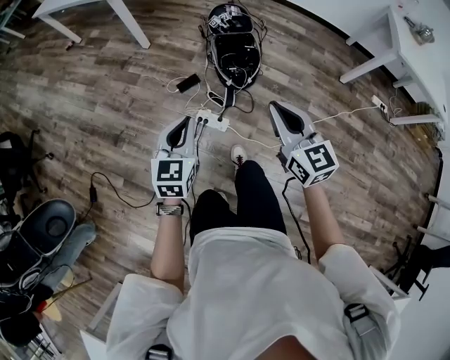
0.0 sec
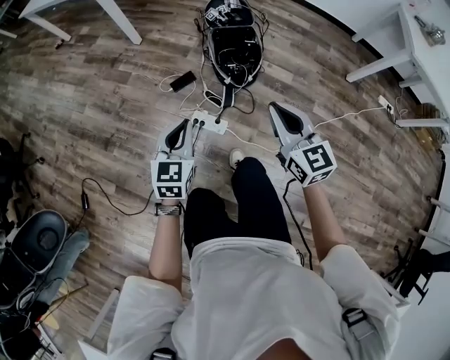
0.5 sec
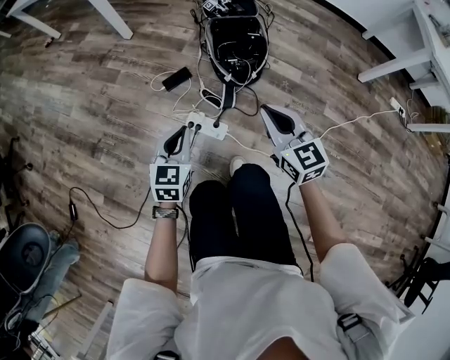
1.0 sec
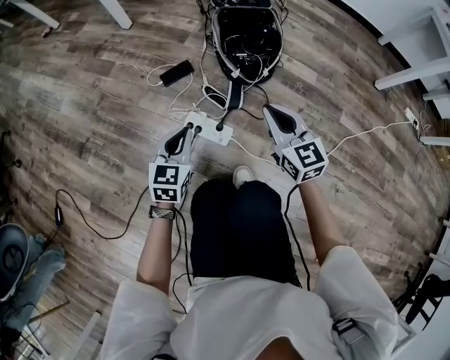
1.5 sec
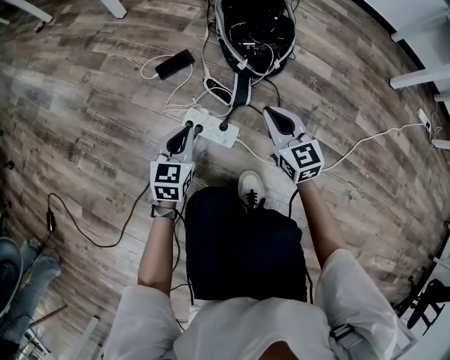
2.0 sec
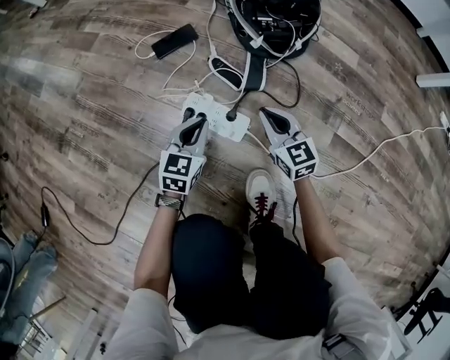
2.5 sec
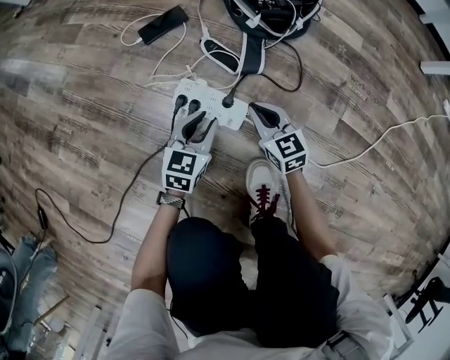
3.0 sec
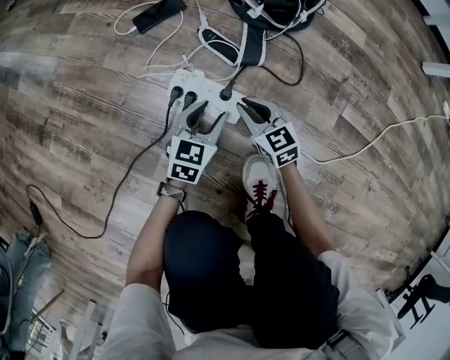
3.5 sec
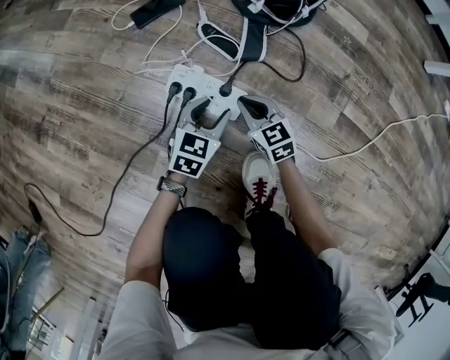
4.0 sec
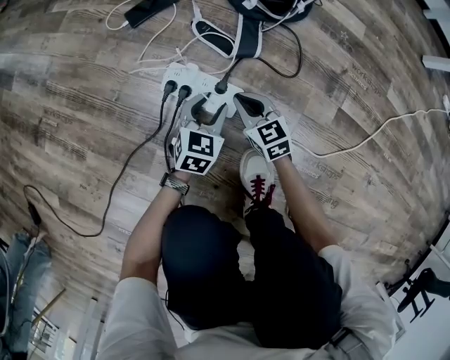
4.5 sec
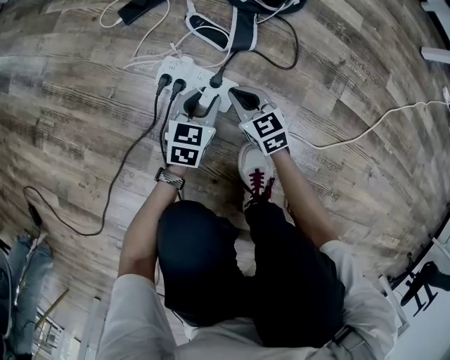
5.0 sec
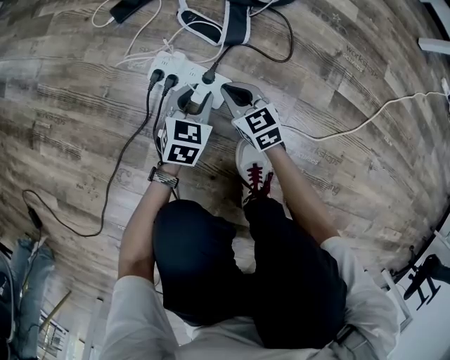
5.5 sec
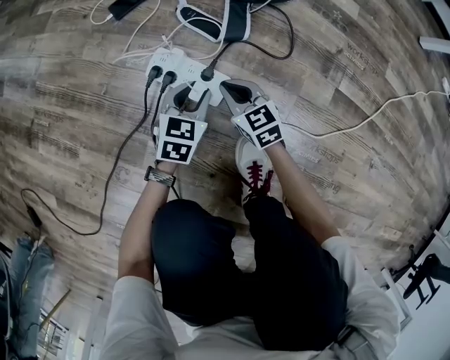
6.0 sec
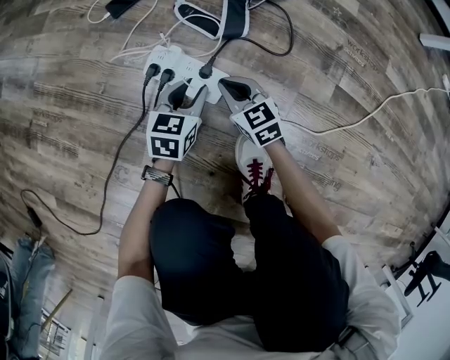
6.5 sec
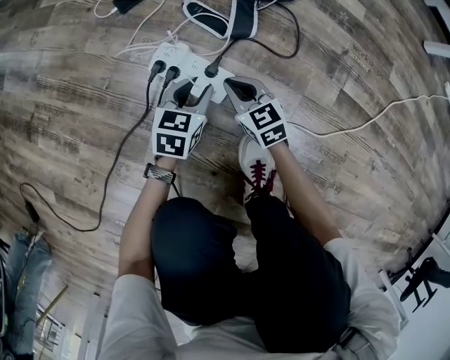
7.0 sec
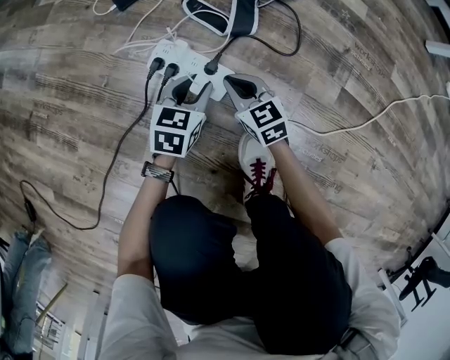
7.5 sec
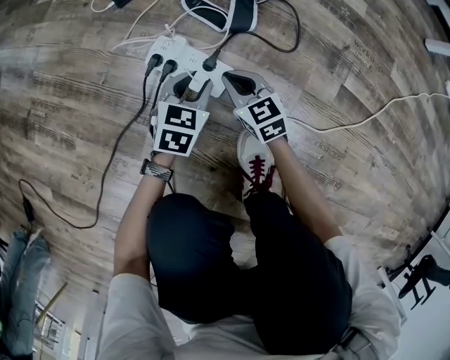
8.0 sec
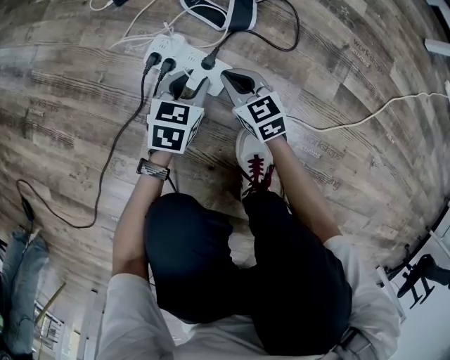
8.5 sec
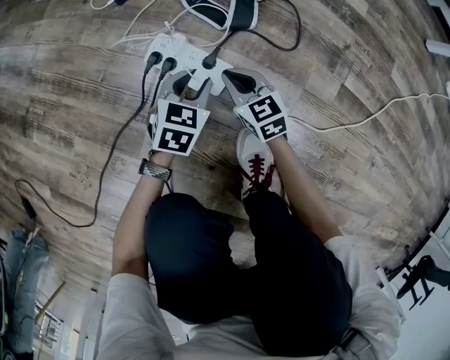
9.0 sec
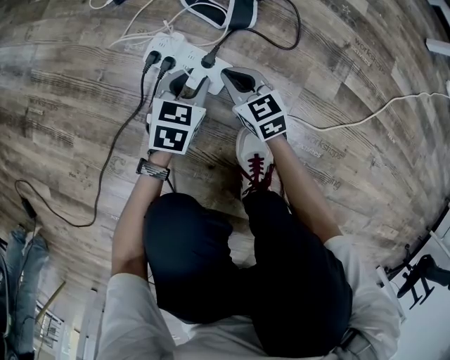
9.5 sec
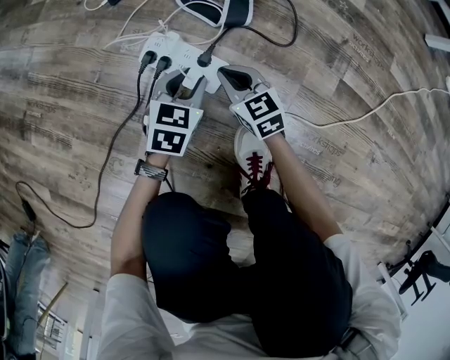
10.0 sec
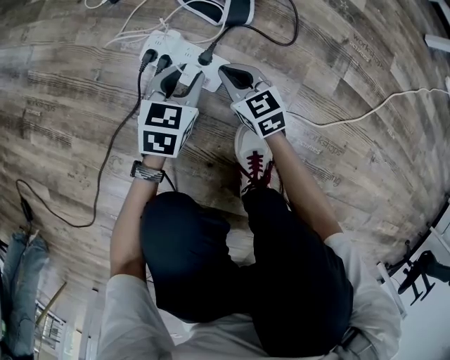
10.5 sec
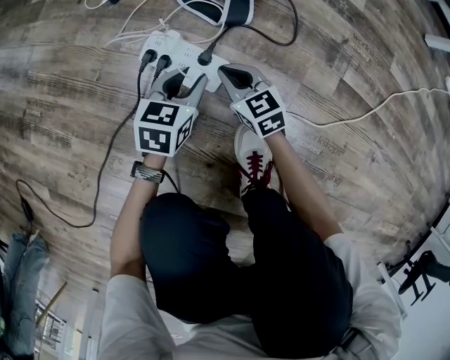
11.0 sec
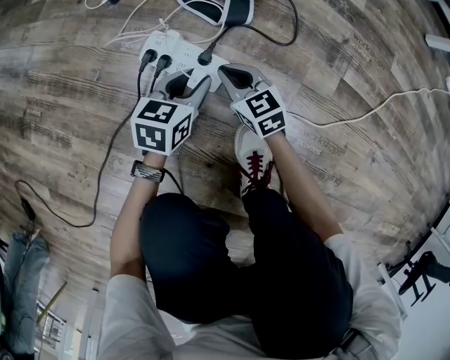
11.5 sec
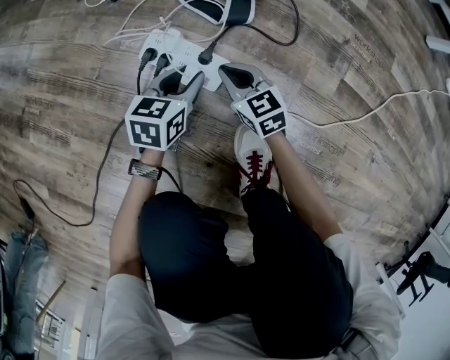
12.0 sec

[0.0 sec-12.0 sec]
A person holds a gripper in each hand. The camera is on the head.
0.0 sec to 2.0 sec: The grippers both shift downward by some 60 cm.
2.0 sec to 4.0 sec: The left gripper heads downward and to the right, covering some 20 cm, and opens. Meanwhile the right gripper goes roughly 30 cm downward.
4.0 sec to 12.0 sec: The grippers move only a little.

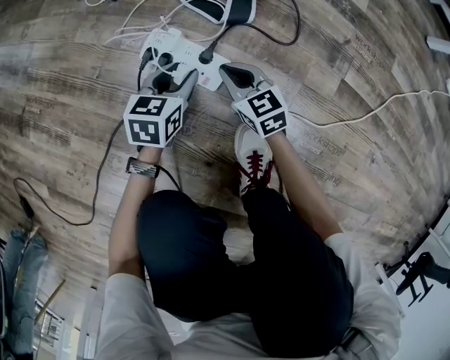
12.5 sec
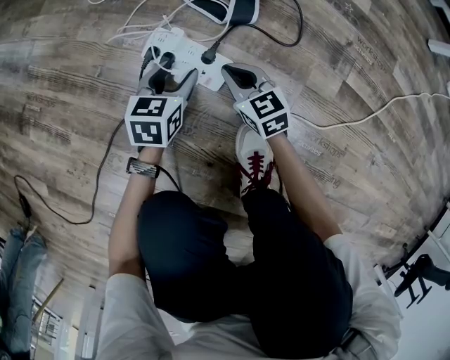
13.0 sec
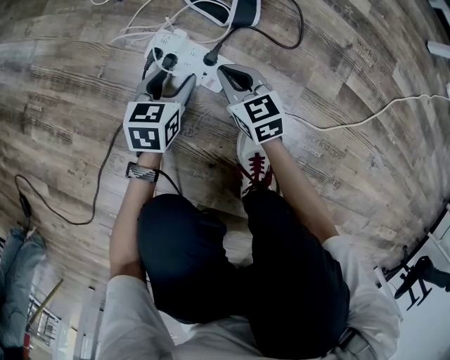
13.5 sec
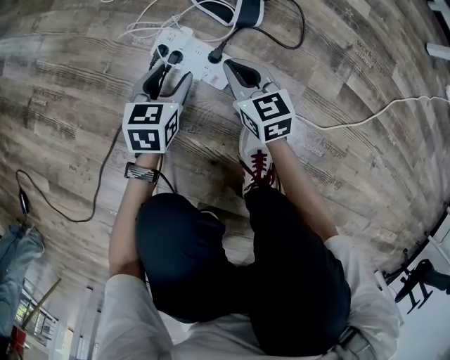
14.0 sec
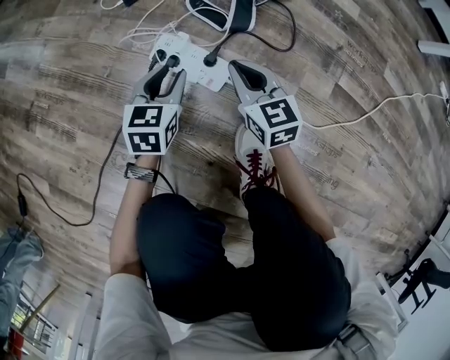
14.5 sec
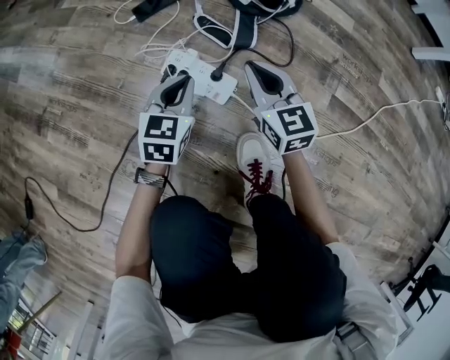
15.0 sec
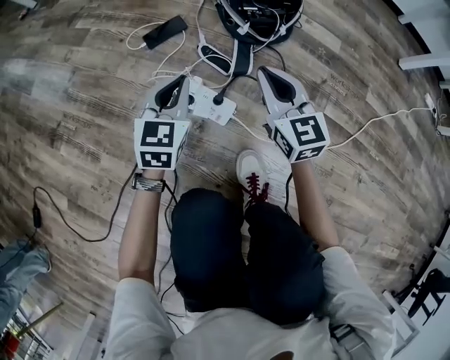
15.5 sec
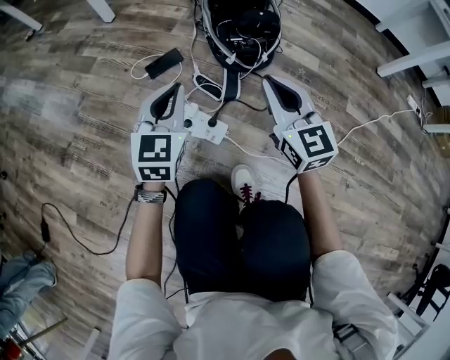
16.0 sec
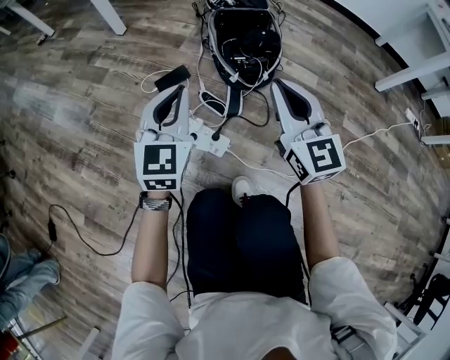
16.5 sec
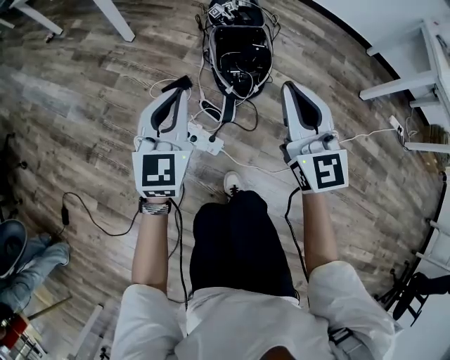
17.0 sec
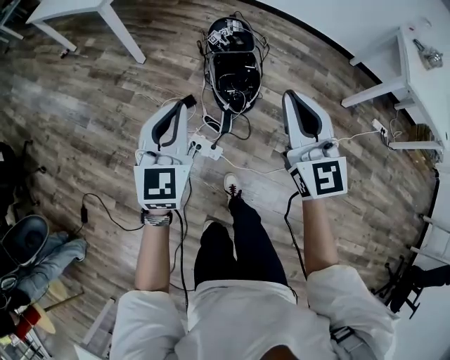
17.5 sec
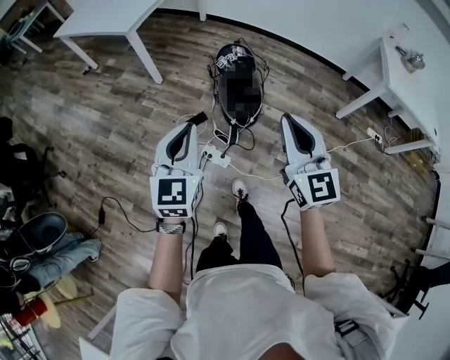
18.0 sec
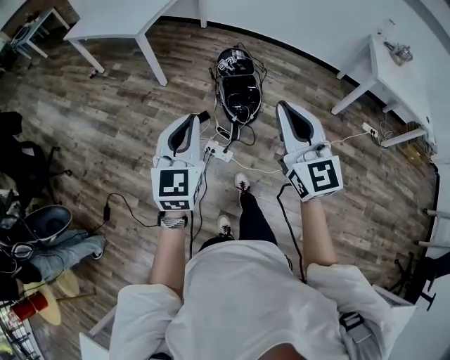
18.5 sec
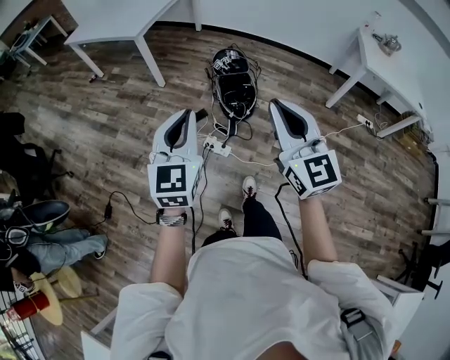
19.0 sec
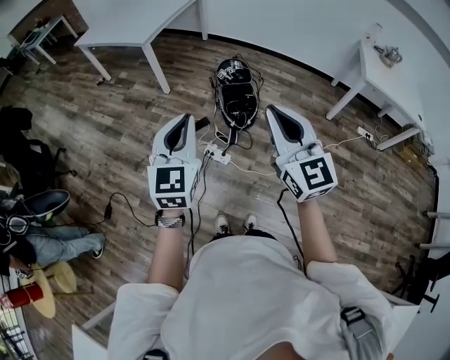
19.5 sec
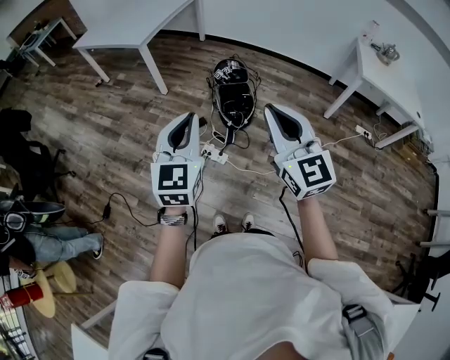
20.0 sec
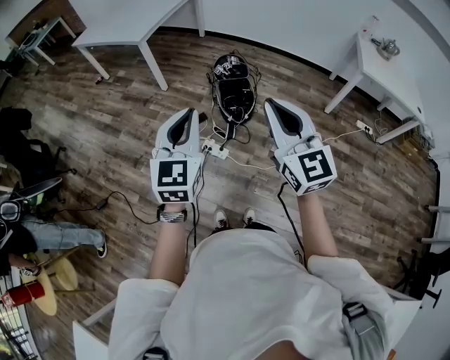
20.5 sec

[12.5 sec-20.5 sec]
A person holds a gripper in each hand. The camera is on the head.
12.5 sec to 14.5 sec: The left gripper moves upward, roughly 5 cm; the right gripper moves upward, about 10 cm.
14.5 sec to 16.5 sec: The two grippers go approximately 40 cm upward. The left gripper changes its angle by approximately 30 degrees, and closes up. The right gripper turns by approximately 30 degrees.
16.5 sec to 18.5 sec: The two grippers go about 60 cm upward.
18.5 sec to 20.5 sec: The left gripper heads backward and upward, covering about 10 cm, while the right gripper goes about 10 cm backward.

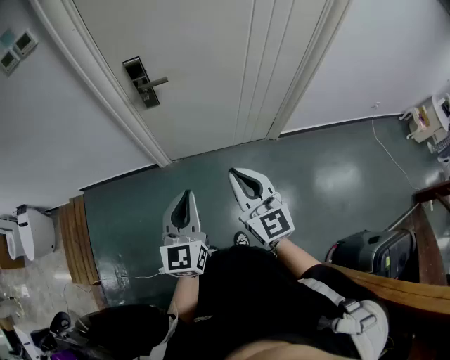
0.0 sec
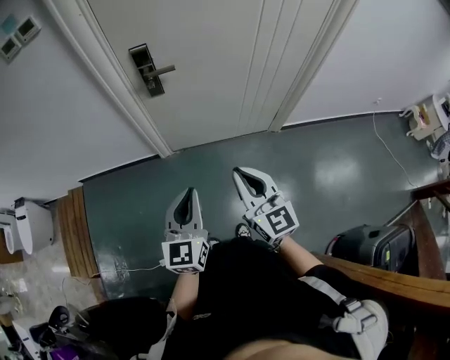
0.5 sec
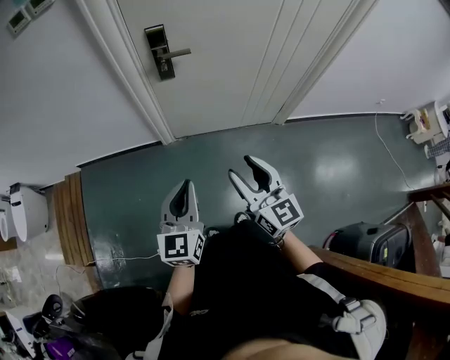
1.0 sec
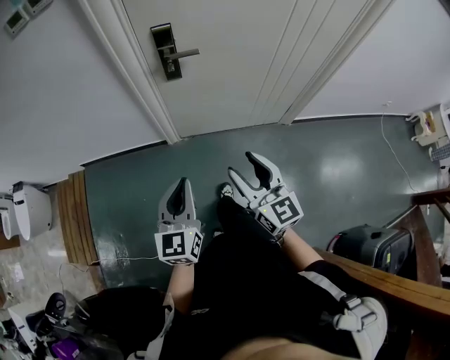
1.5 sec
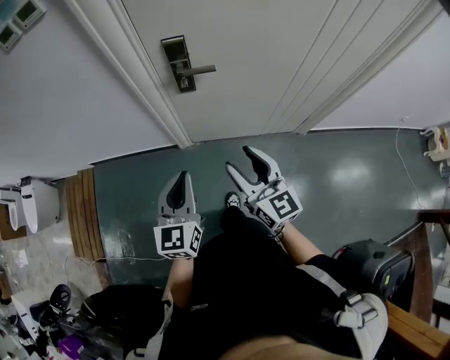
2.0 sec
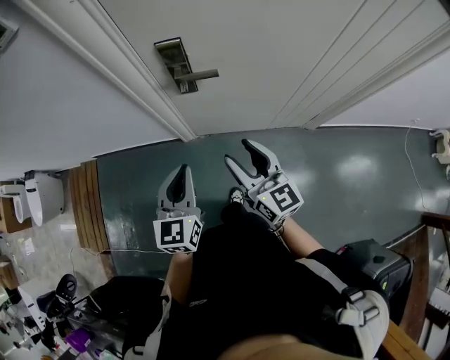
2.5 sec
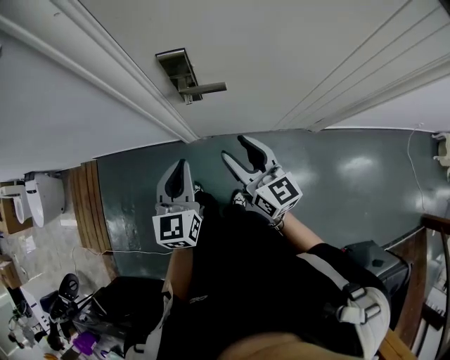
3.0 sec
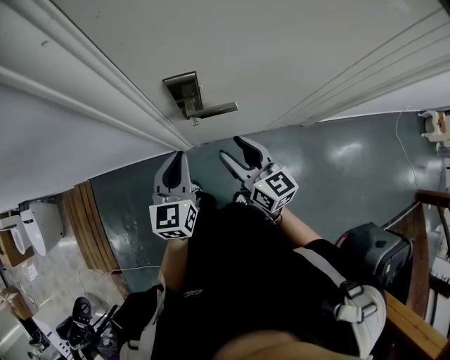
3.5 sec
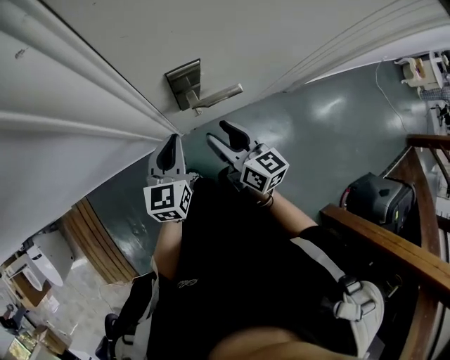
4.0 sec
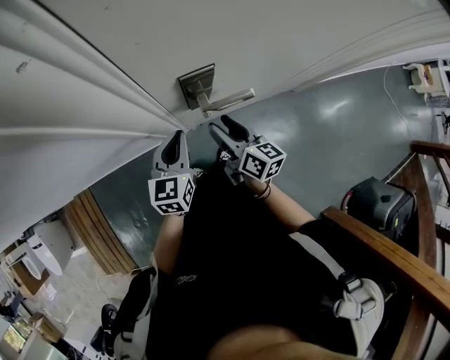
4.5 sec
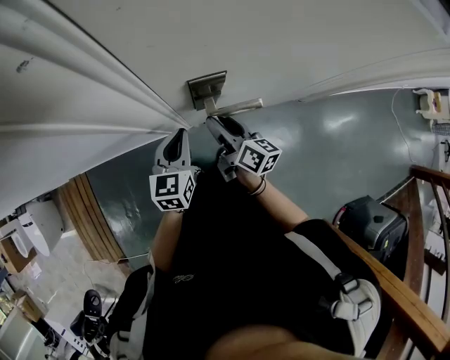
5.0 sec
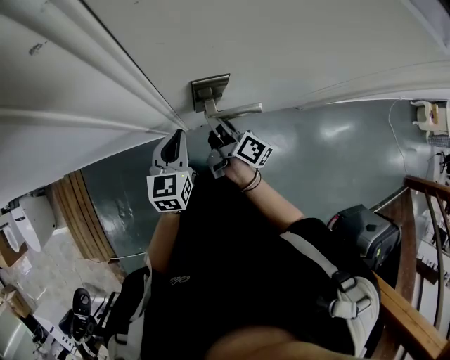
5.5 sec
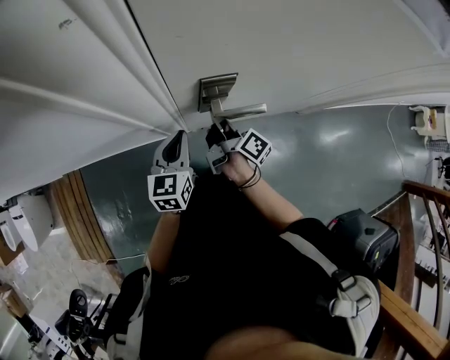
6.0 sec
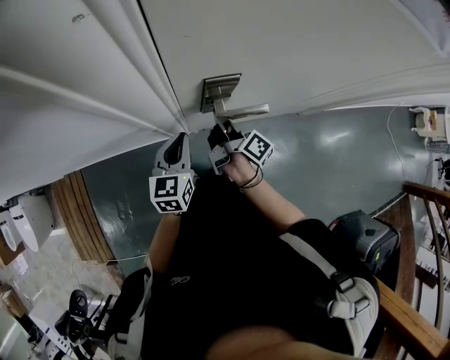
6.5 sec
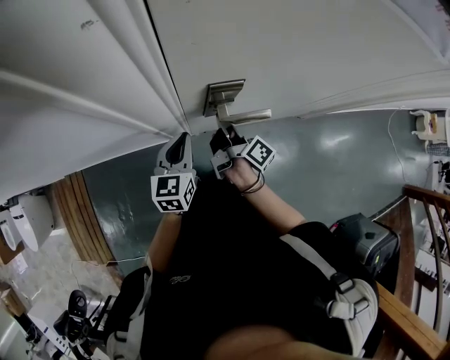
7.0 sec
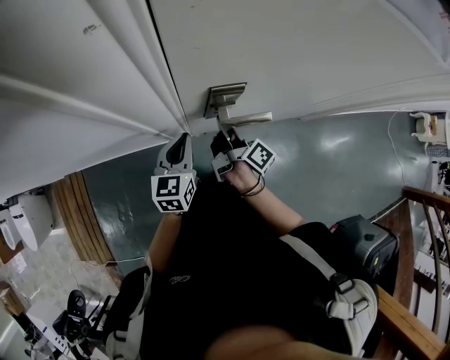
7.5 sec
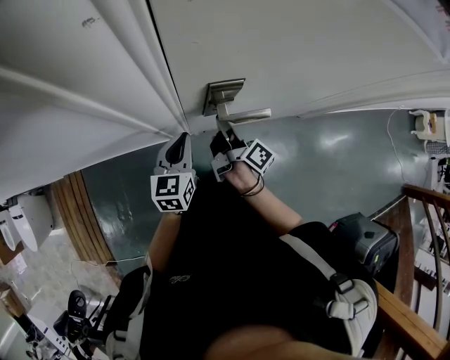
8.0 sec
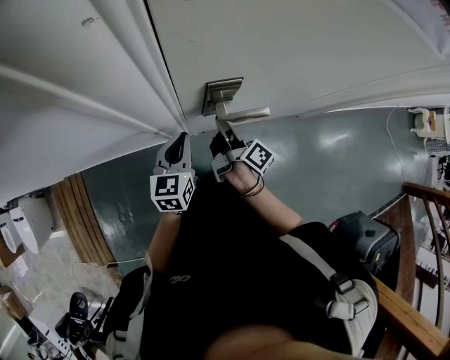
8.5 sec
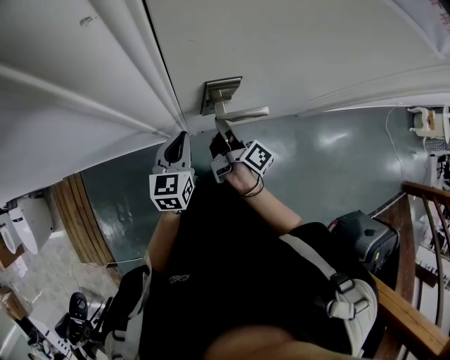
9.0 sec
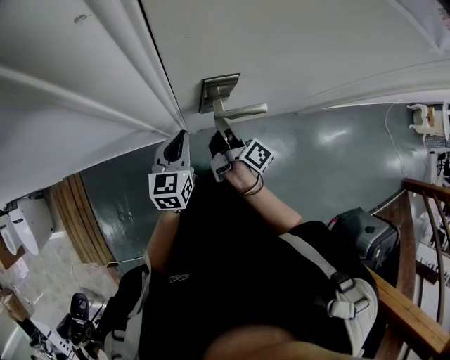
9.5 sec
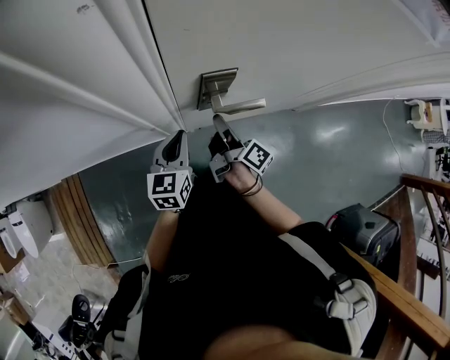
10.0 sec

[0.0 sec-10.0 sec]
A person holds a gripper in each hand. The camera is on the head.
0.0 sec to 2.0 sec: Both grippers move forward and to the left, approximately 20 cm. The right gripper opens.
2.0 sec to 4.0 sec: The grippers both shift forward by roughly 30 cm. The right gripper swivels some 30 degrees, while the left gripper changes its angle by roughly 20 degrees.
4.0 sec to 6.0 sec: The right gripper heads forward and downward, covering roughly 10 cm, rolls clockwise, seen from behind, by approximately 50 degrees, and closes its fingers.
6.0 sec to 10.0 sec: The grippers stay close to where they were, moving slightly.
